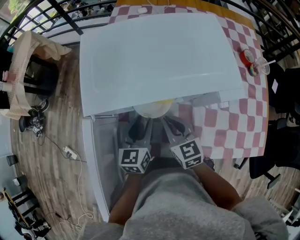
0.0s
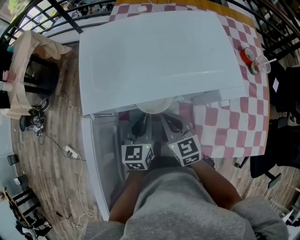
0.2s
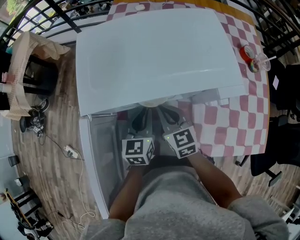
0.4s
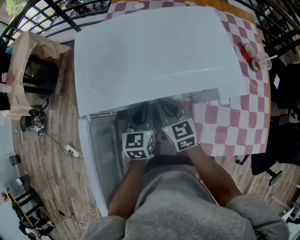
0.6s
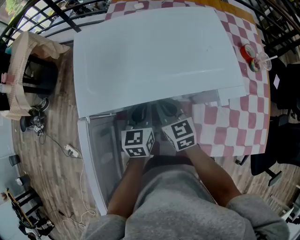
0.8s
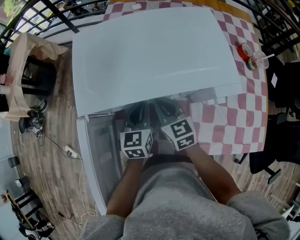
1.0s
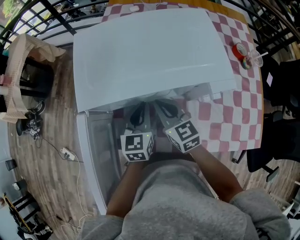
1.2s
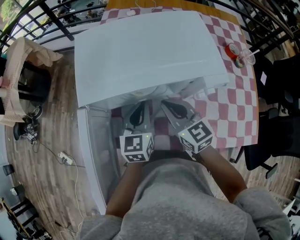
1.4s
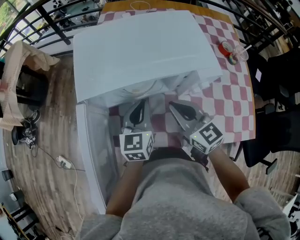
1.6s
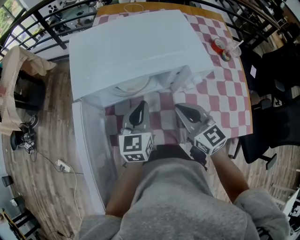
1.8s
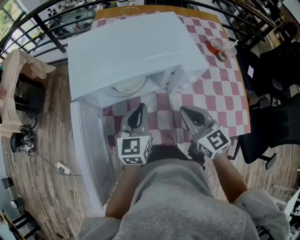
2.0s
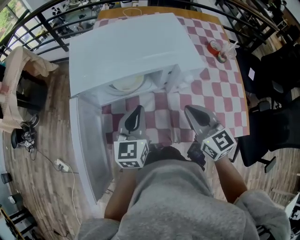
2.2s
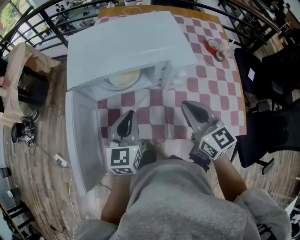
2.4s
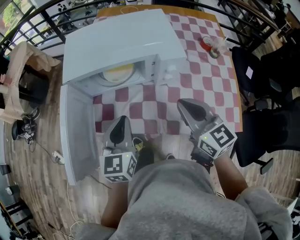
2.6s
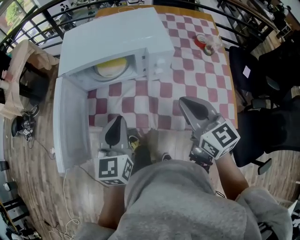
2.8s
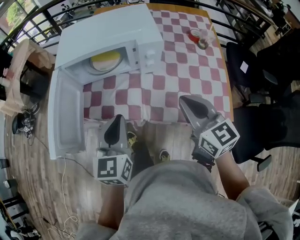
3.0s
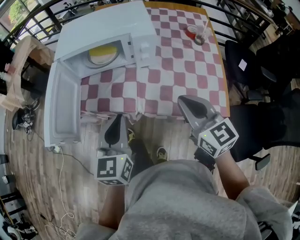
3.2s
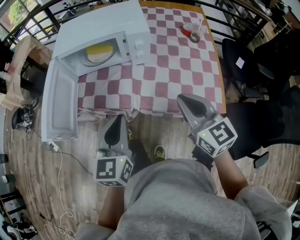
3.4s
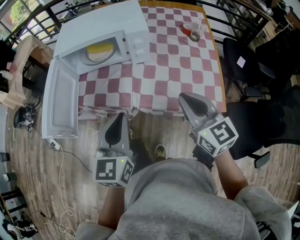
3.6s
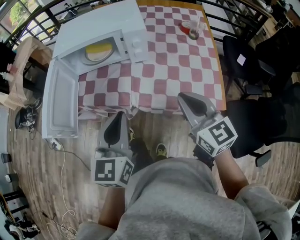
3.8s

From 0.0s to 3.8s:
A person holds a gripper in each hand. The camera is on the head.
From 0.0s to 1.2s: The left gripper closes its fingers.
From 1.2s to 2.6s: The left gripper goes about 20 cm backward and upward, while the right gripper travels backward, to the right and upward by roughly 25 cm.
From 2.6s to 3.8s: Both grippers travel together backward and to the right, some 20 cm.

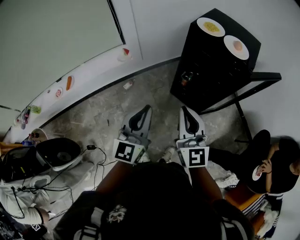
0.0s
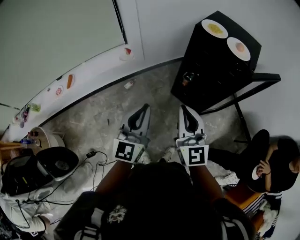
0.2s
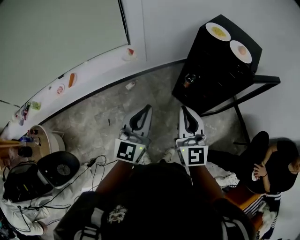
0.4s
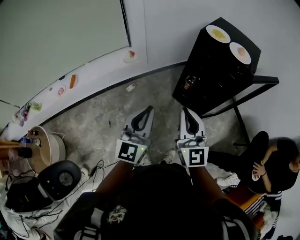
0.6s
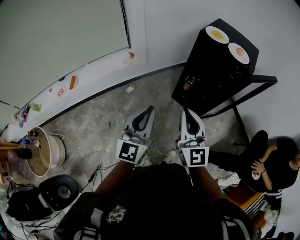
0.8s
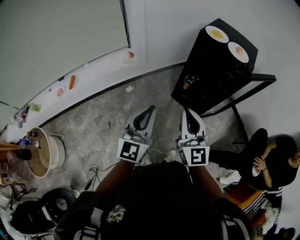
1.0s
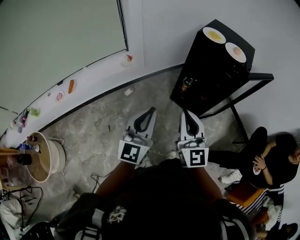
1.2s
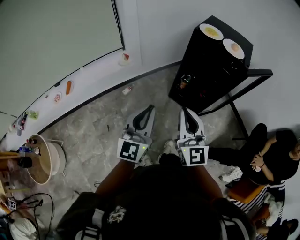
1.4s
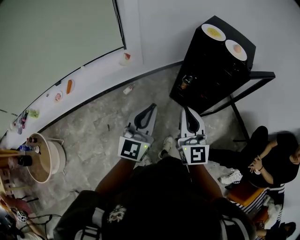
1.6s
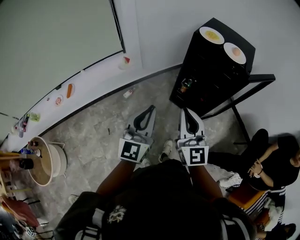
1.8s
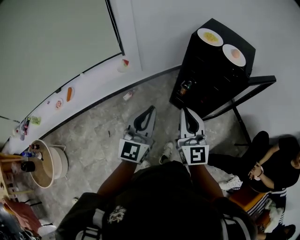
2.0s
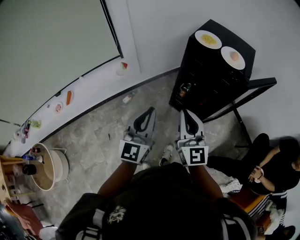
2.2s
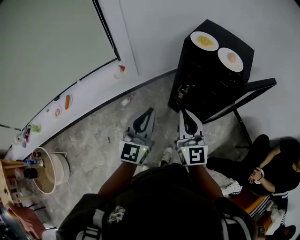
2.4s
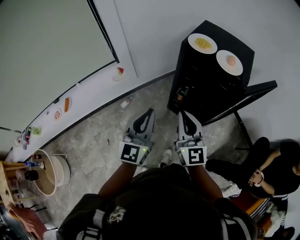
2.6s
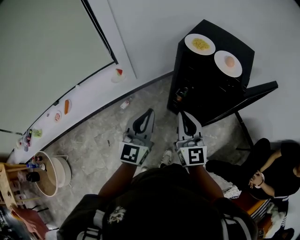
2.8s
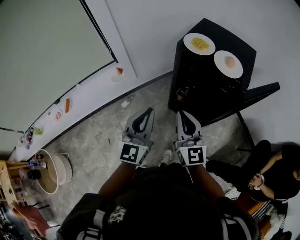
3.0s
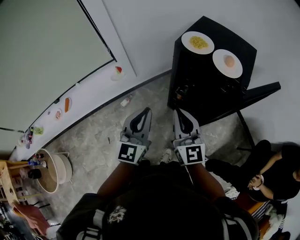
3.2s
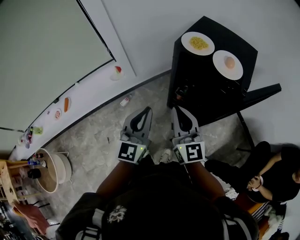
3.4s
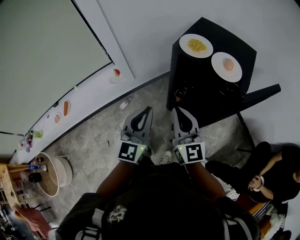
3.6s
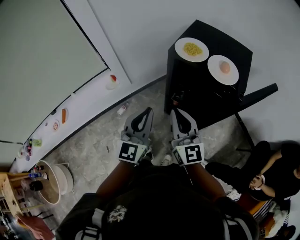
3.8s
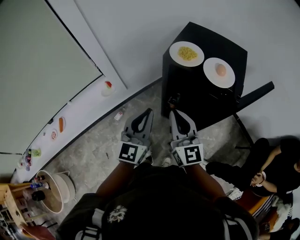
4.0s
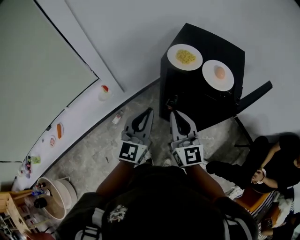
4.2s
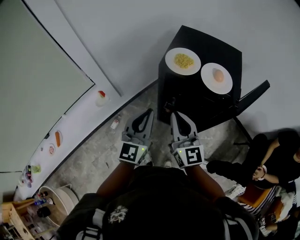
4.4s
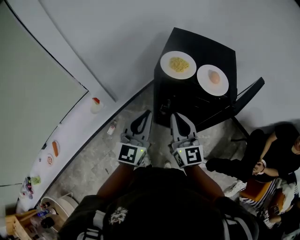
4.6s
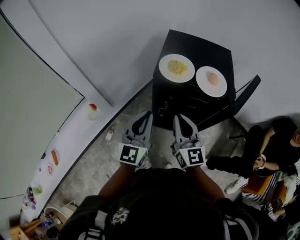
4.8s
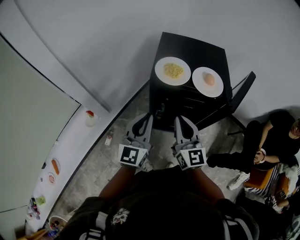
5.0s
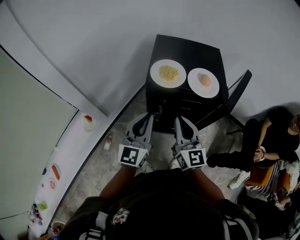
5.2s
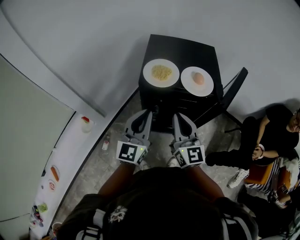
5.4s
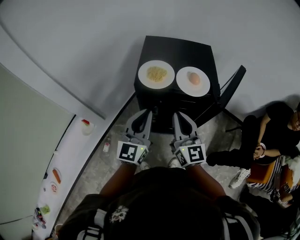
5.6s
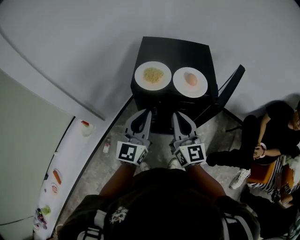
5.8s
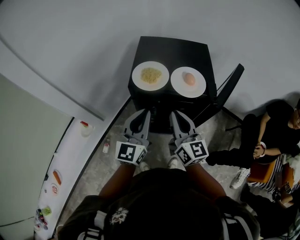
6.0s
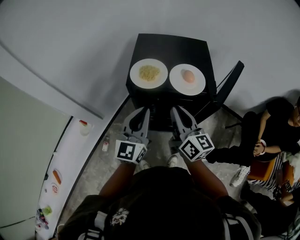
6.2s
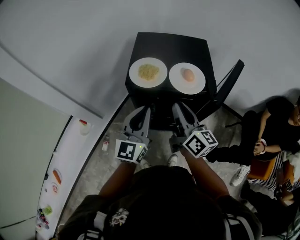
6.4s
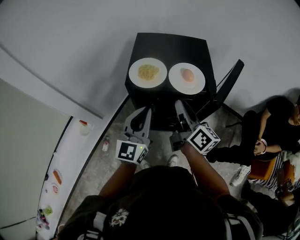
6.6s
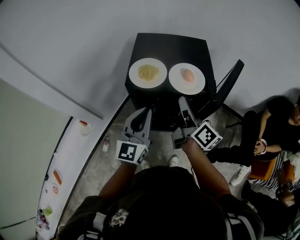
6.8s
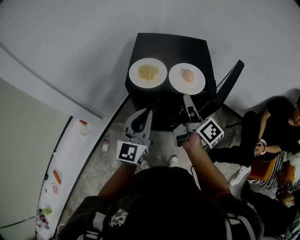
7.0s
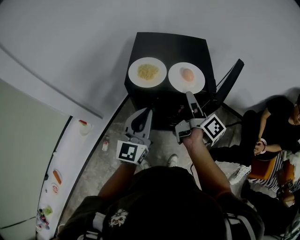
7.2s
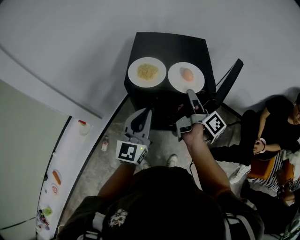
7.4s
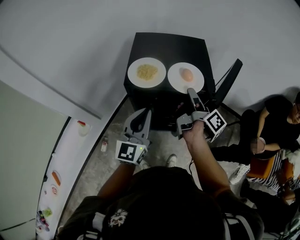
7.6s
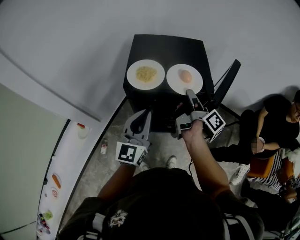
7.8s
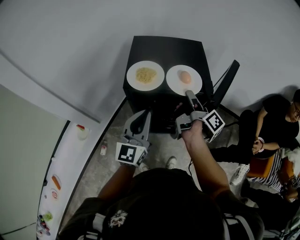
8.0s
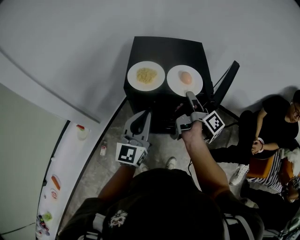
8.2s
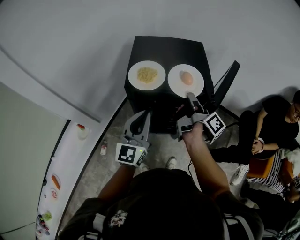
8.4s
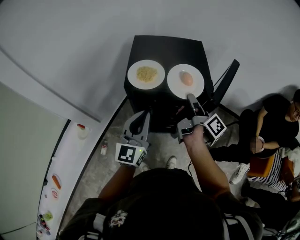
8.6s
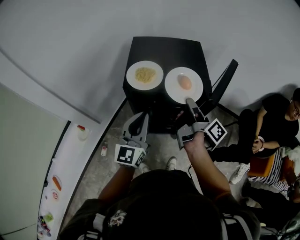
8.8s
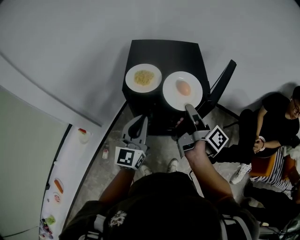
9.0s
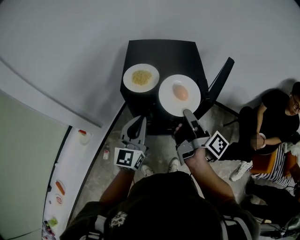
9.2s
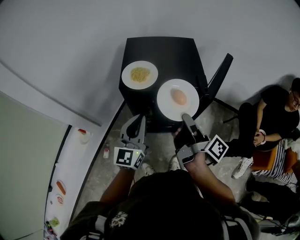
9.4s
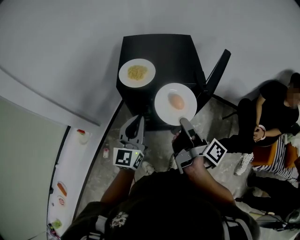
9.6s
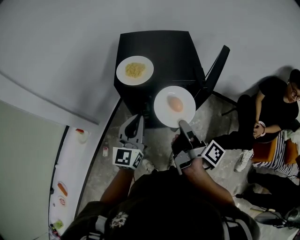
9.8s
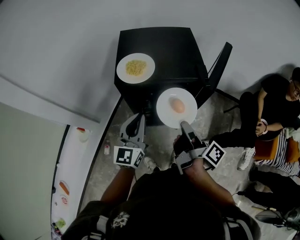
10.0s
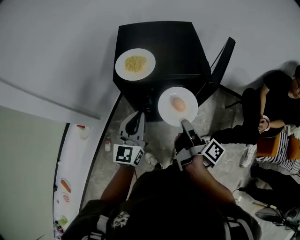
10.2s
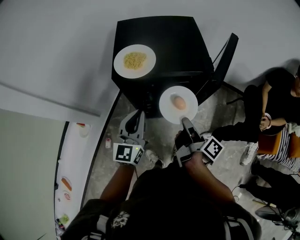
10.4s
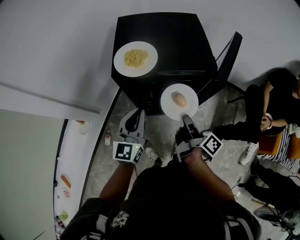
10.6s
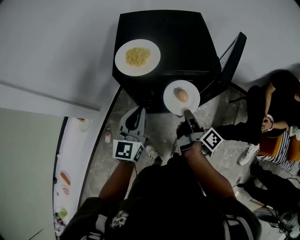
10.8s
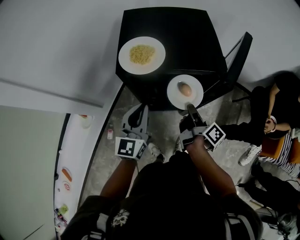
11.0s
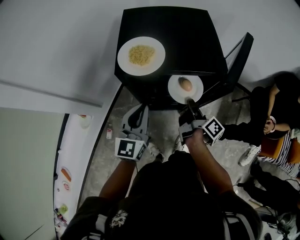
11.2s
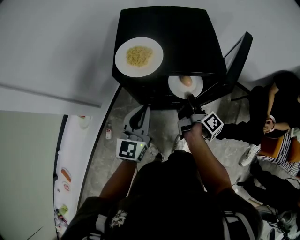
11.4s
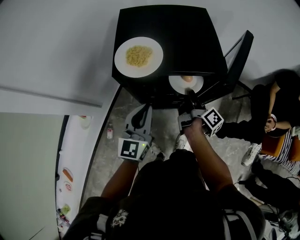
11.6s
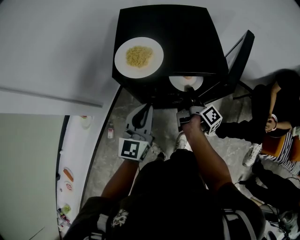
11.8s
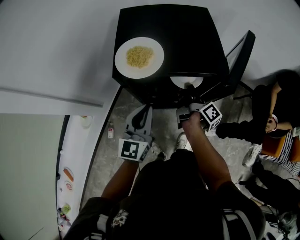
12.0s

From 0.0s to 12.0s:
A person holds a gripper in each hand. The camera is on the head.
From 0.0s to 1.6s: The right gripper shifts approximately 5 cm to the left.
From 1.6s to 3.0s: The two grippers go approximately 20 cm forward and to the right.
From 3.0s to 4.4s: The two grippers go about 10 cm forward.
From 4.4s to 6.0s: The left gripper goes some 10 cm forward and to the right. The right gripper moves to the right and forward, approximately 10 cm.
From 6.0s to 7.6s: The right gripper moves forward and to the right, roughly 10 cm, rotates around the line of its fingers by some 70 degrees, clockwise from behind, and opens.
From 7.6s to 9.0s: The right gripper goes roughly 5 cm backward, and closes its fingers.
From 9.0s to 10.4s: The right gripper shifts roughly 15 cm downward and backward; the left gripper is displaced downward by some 5 cm.
From 10.4s to 12.0s: The right gripper moves forward and downward, approximately 15 cm.

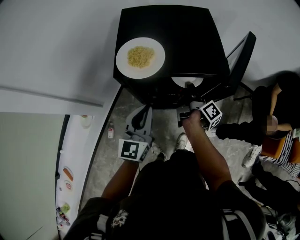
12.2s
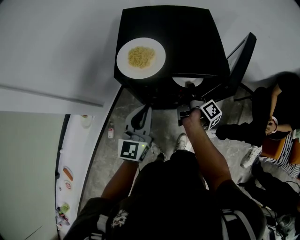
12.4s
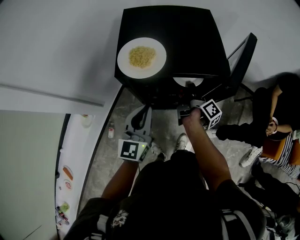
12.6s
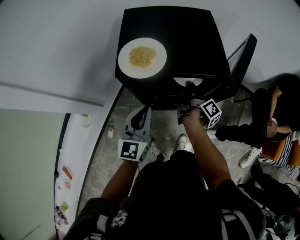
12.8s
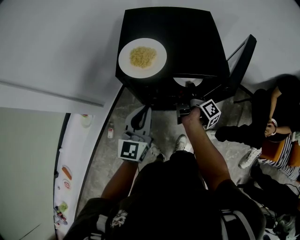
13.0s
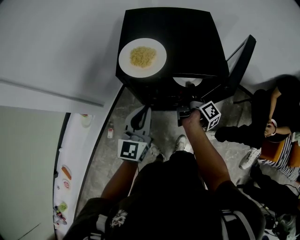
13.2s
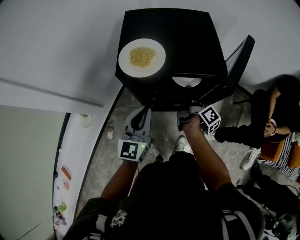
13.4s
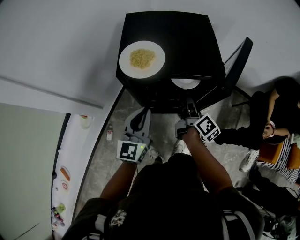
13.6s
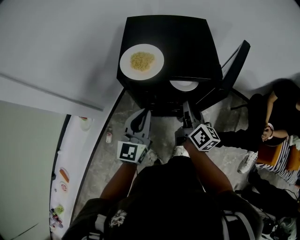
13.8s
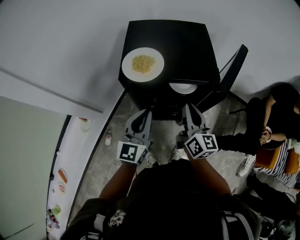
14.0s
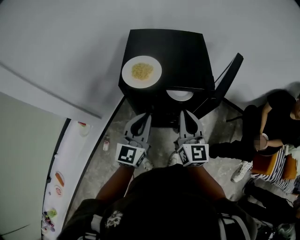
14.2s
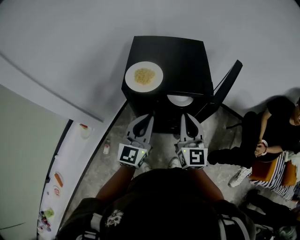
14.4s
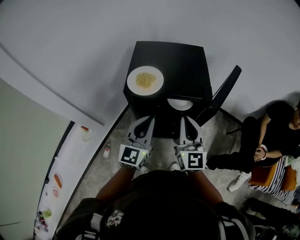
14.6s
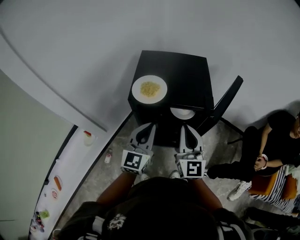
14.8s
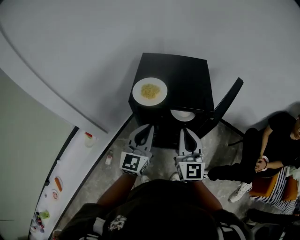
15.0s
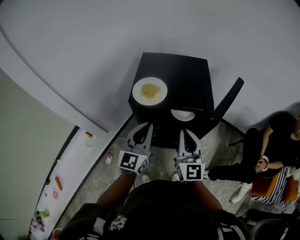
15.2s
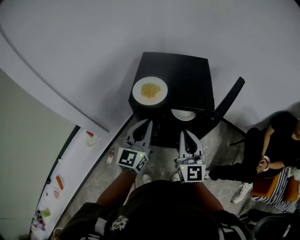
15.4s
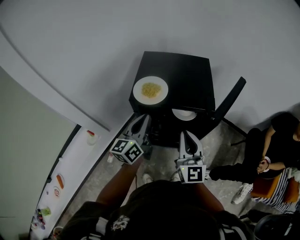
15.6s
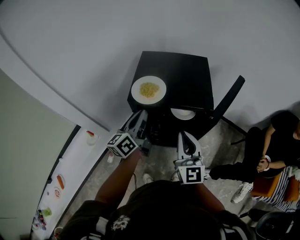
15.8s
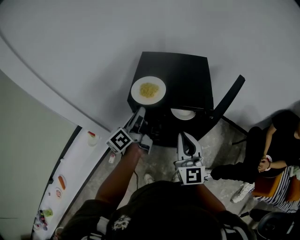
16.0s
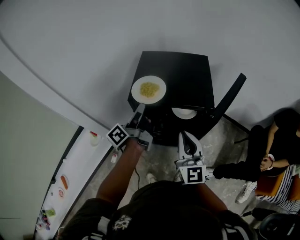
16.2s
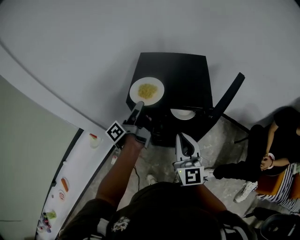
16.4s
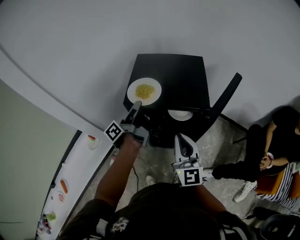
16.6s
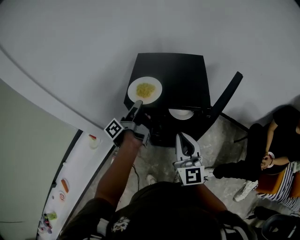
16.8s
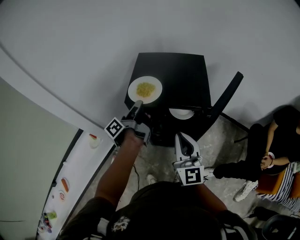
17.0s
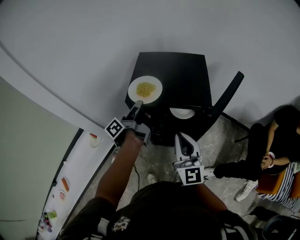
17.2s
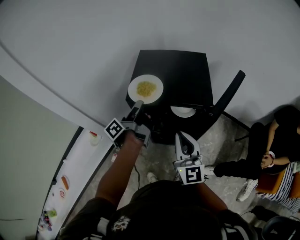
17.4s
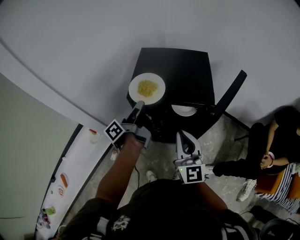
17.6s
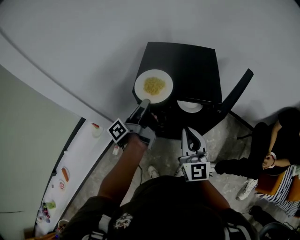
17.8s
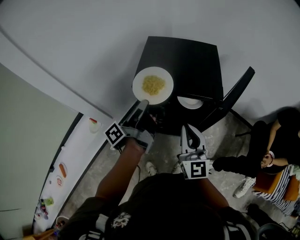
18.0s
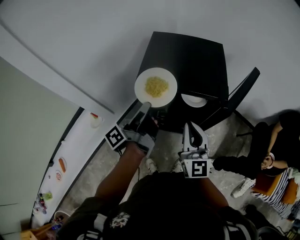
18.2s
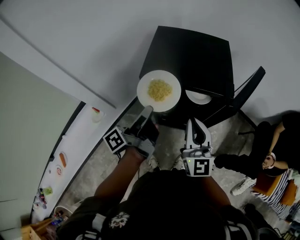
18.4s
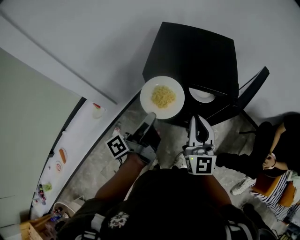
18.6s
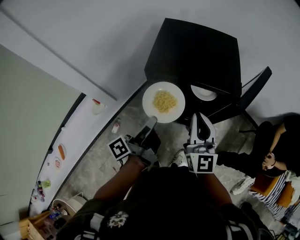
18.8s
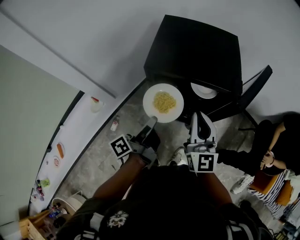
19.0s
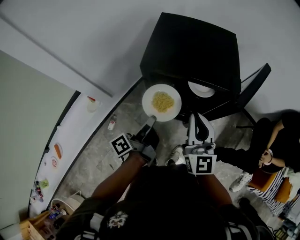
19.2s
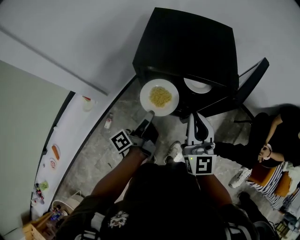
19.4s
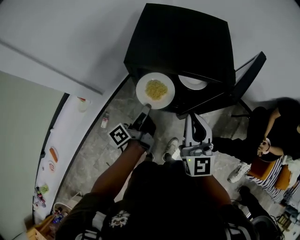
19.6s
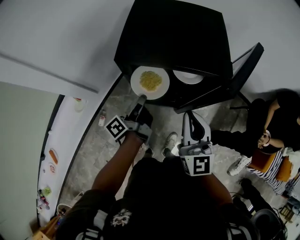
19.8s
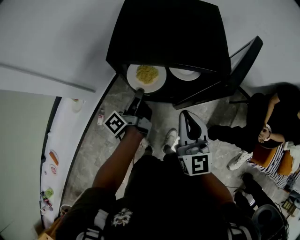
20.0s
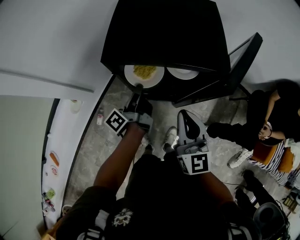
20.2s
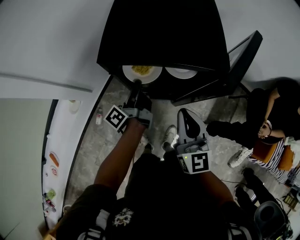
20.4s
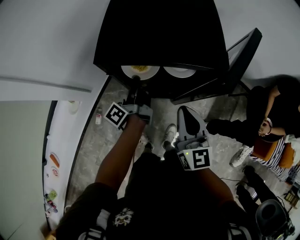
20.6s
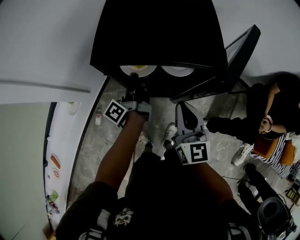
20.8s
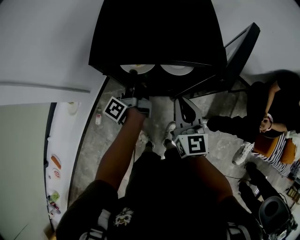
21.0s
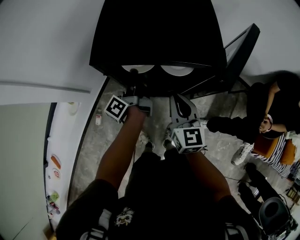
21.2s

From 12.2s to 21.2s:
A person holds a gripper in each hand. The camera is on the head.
From 12.2s to 13.8s: The right gripper goes approximately 10 cm upward and backward, and twists approximately 40 degrees counterclockwise, seen from behind.
From 13.8s to 15.2s: The right gripper is displaced upward and backward by some 15 cm, and rotates around the line of its fingers by some 50 degrees, counterclockwise from behind. The left gripper shifts approximately 10 cm upward.
From 15.2s to 16.6s: The left gripper moves forward, approximately 10 cm, and twists about 90 degrees counterclockwise, seen from behind.
From 16.6s to 18.2s: The left gripper travels backward by approximately 5 cm.
From 18.2s to 19.8s: The left gripper heads downward, covering some 15 cm.
From 19.8s to 21.2s: The right gripper is displaced downward and forward by some 10 cm. The left gripper goes approximately 10 cm forward.
